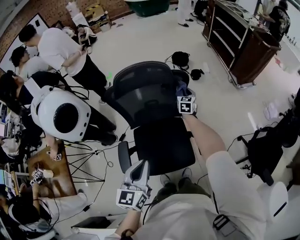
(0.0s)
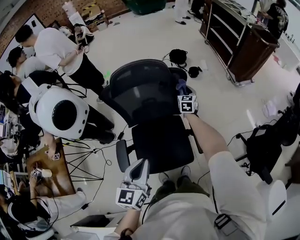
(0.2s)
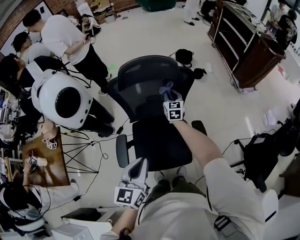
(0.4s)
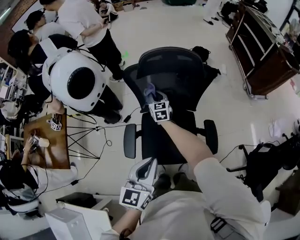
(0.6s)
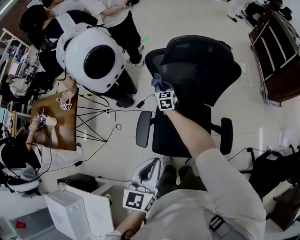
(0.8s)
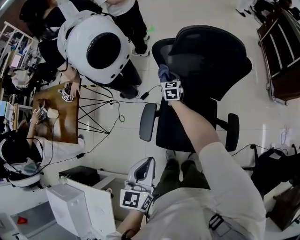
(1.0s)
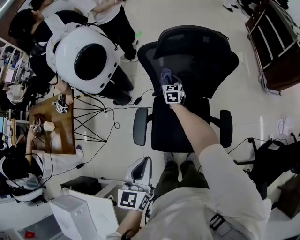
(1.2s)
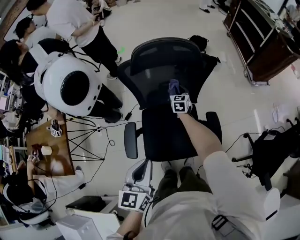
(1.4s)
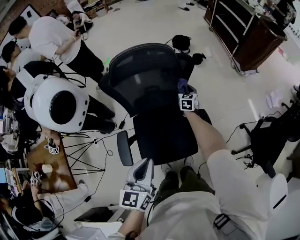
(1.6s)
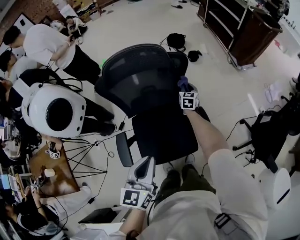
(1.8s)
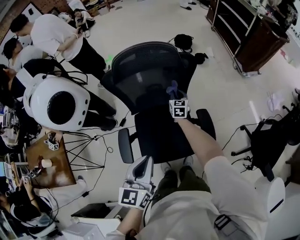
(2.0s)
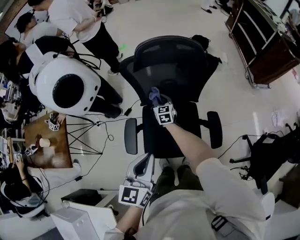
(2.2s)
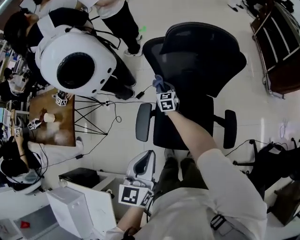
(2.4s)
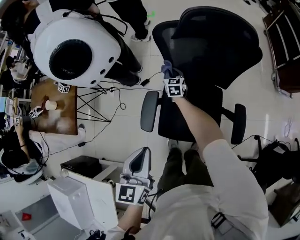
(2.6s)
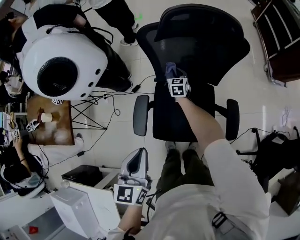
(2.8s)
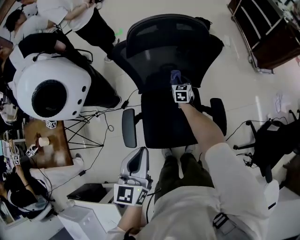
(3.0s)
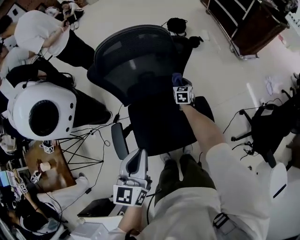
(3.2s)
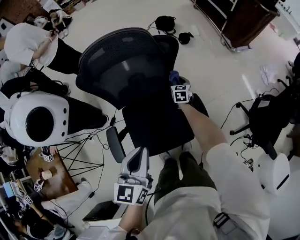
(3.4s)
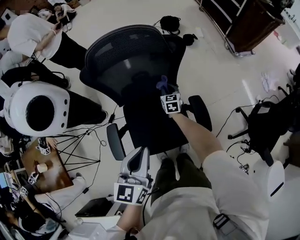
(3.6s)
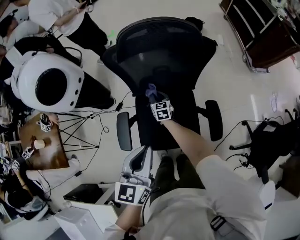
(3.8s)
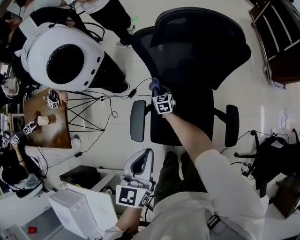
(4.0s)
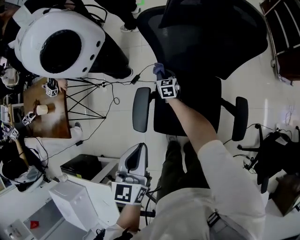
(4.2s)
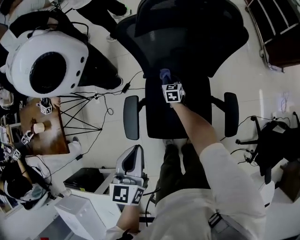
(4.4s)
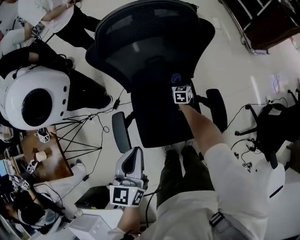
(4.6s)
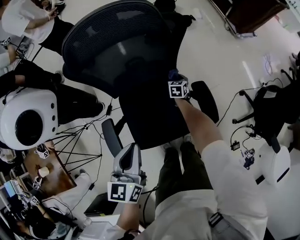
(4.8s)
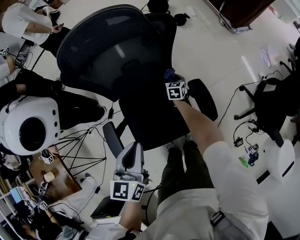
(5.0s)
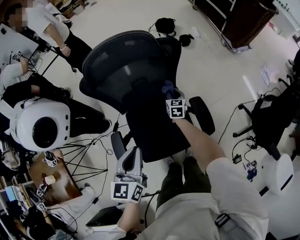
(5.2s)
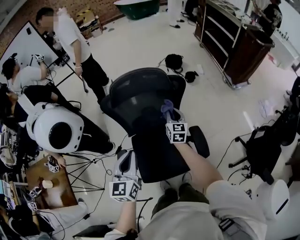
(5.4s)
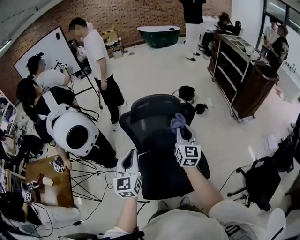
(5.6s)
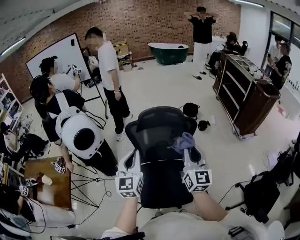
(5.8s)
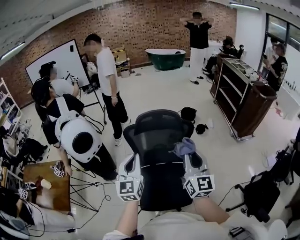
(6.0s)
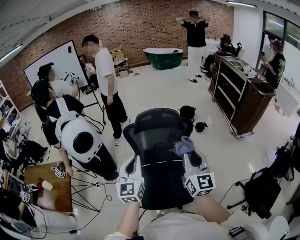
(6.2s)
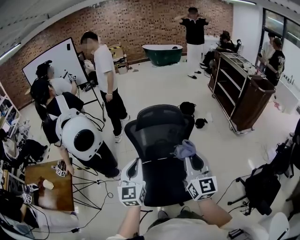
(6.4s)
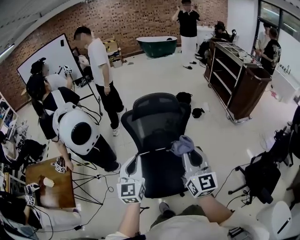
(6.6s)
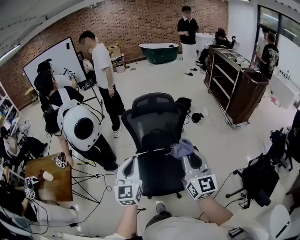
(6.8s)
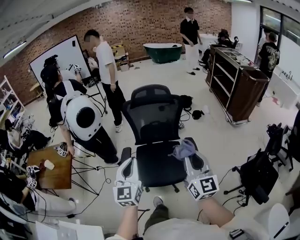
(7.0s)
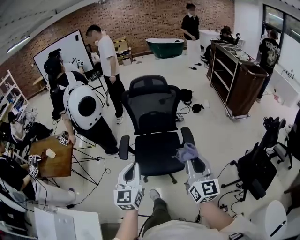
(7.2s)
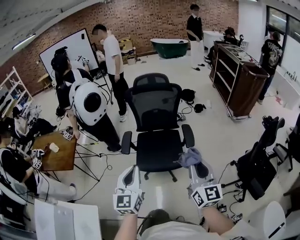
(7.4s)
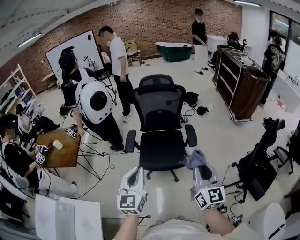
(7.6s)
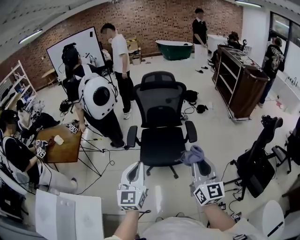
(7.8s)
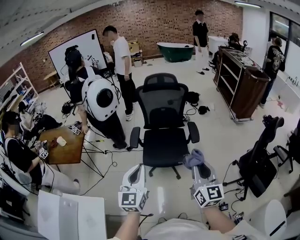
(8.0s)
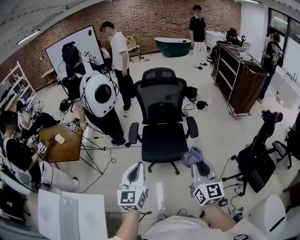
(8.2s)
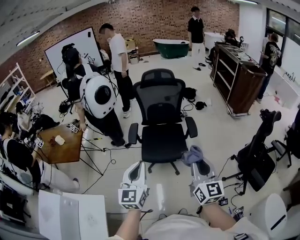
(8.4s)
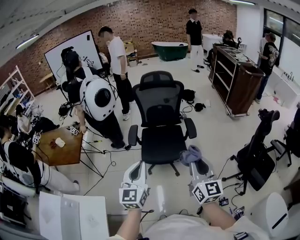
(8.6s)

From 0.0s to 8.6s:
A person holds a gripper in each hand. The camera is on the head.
From 0.0s to 1.4s: The left gripper moves some 5 cm.
From 1.4s to 2.8s: The left gripper ends up some 10 cm from where it was.
From 2.8s to 4.4s: The right gripper is displaced downward by approximately 10 cm.
From 4.4s to 5.8s: The left gripper moves backward, upward and to the right, about 25 cm, and changes its angle by roughly 30 degrees. Meanwhile the right gripper travels upward, backward and to the right by roughly 80 cm, and tips its fingers upward by roughly 60 degrees.
From 5.8s to 7.2s: The two grippers go approximately 40 cm backward.
From 7.2s to 8.6s: The two grippers go approximately 20 cm backward.

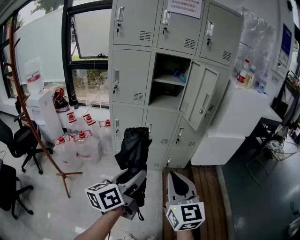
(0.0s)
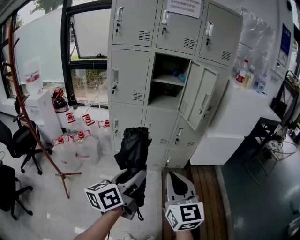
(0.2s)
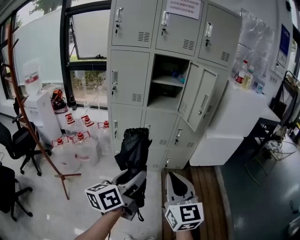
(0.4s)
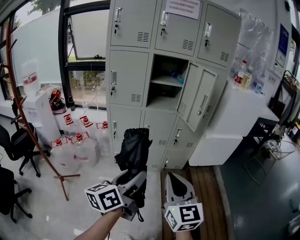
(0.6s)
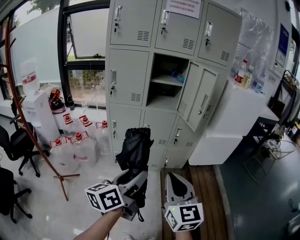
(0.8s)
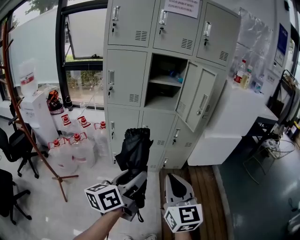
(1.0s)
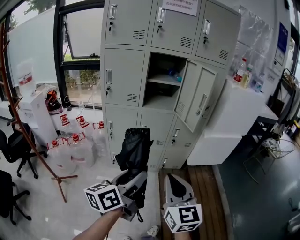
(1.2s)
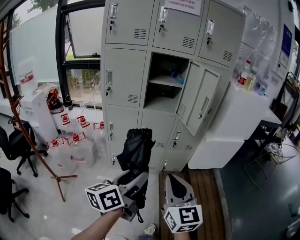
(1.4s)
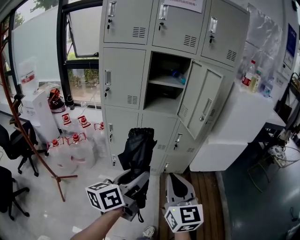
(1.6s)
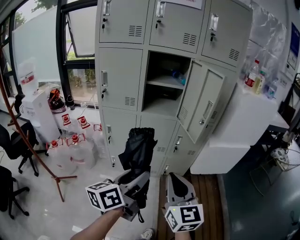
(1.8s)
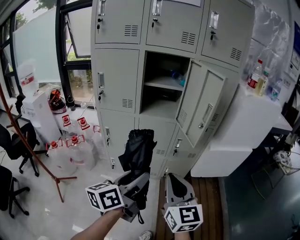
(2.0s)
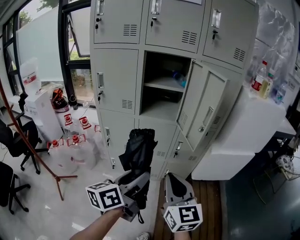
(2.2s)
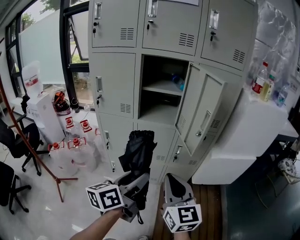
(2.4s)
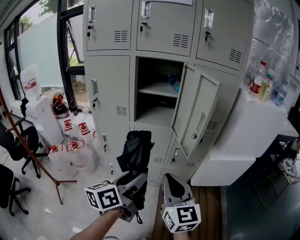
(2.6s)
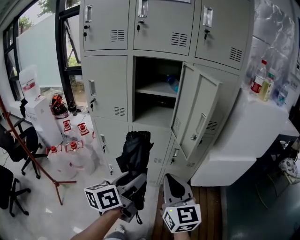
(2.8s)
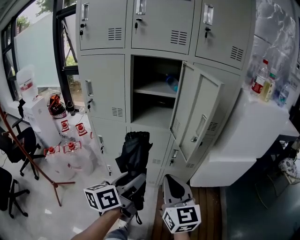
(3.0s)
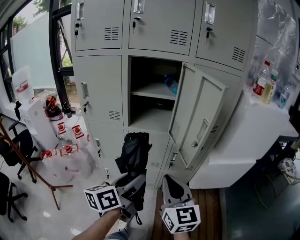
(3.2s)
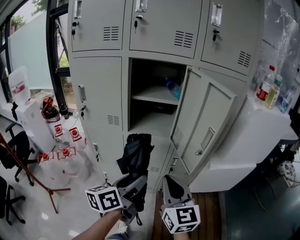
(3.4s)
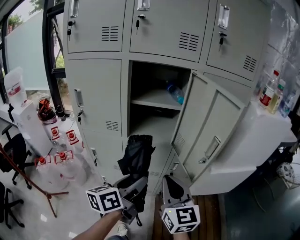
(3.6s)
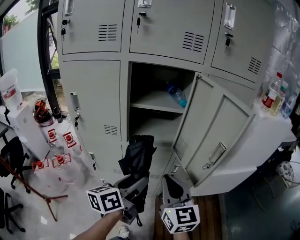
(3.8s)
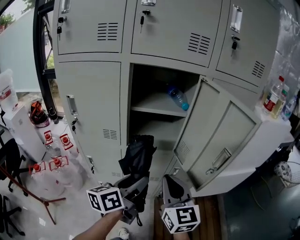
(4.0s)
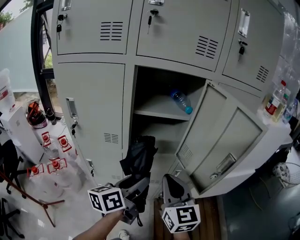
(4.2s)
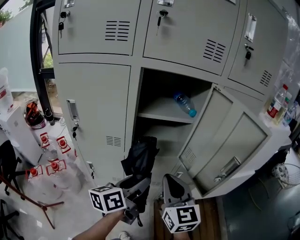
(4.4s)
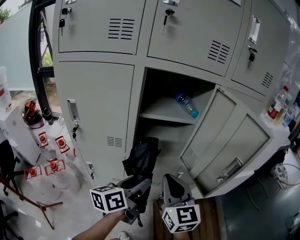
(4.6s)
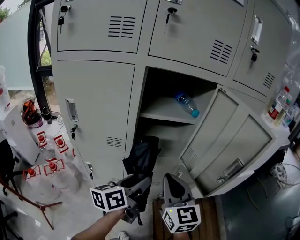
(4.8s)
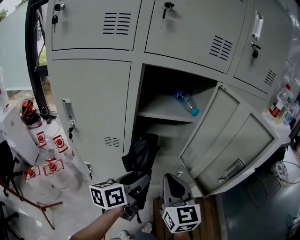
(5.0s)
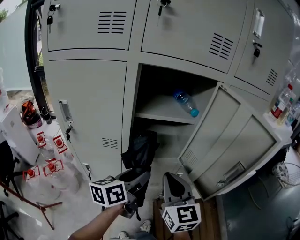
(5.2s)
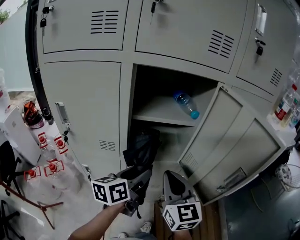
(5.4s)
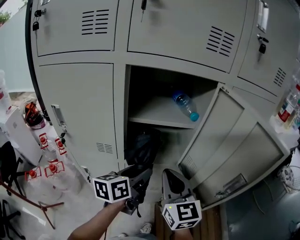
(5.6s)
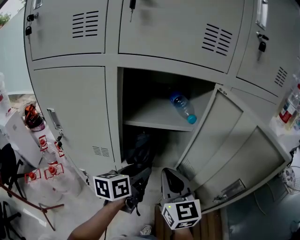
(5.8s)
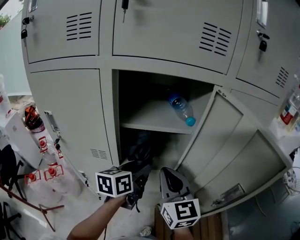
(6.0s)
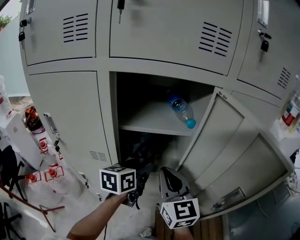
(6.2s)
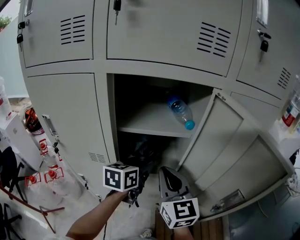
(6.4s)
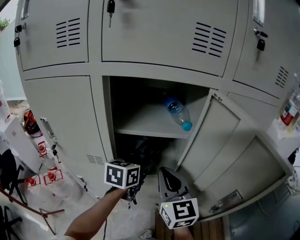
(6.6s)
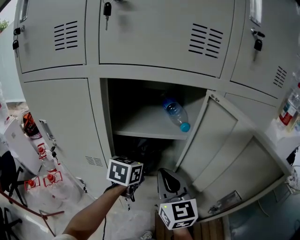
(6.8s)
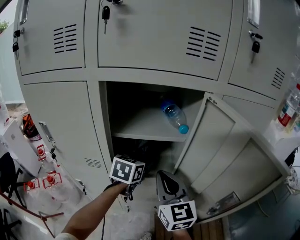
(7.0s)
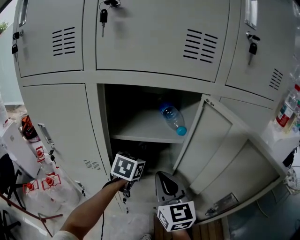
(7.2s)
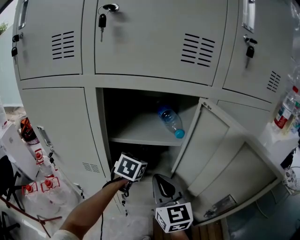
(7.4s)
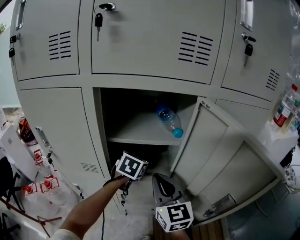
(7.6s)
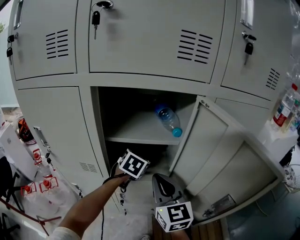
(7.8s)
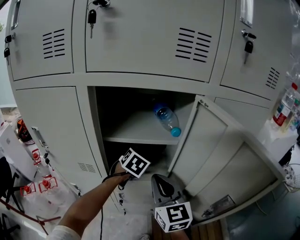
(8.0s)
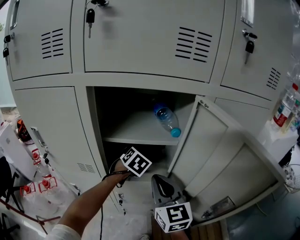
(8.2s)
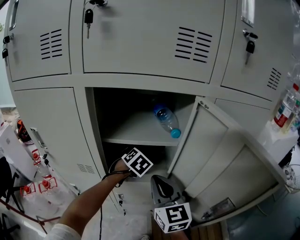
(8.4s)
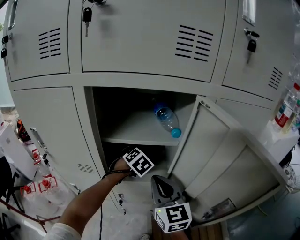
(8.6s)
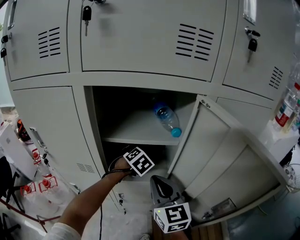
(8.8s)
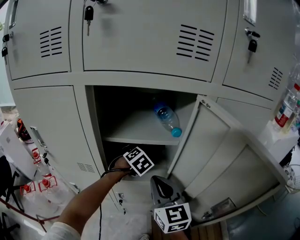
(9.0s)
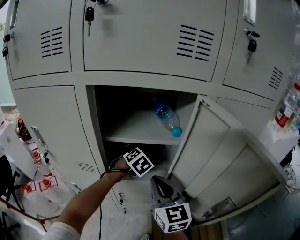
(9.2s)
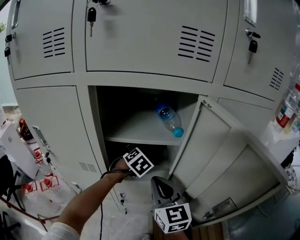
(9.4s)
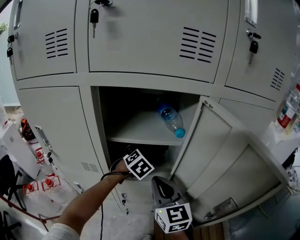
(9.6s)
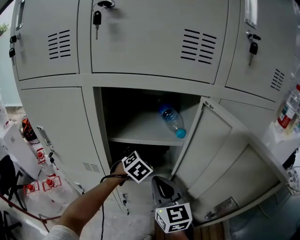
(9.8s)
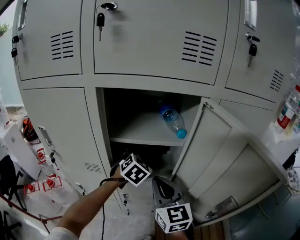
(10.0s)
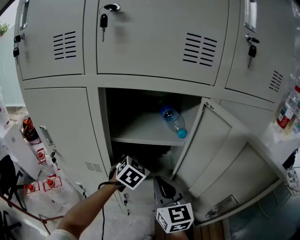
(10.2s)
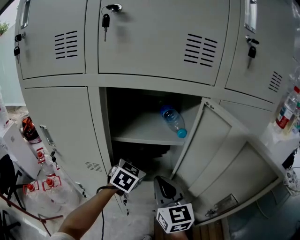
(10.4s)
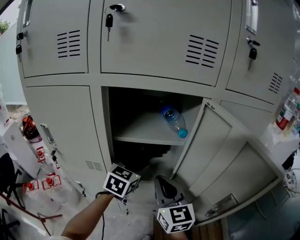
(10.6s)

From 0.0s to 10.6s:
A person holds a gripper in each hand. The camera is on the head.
From 0.0s to 1.6s: The grippers both shift forward by roughly 10 cm.
From 1.6s to 3.0s: Both grippers travel together forward and to the right, about 20 cm.
From 3.0s to 4.6s: Both grippers move forward and to the left, approximately 25 cm.
From 4.6s to 6.0s: The two grippers go approximately 15 cm forward.
From 6.0s to 7.6s: The left gripper heads forward, covering some 10 cm, and swivels some 40 degrees.
From 7.6s to 9.0s: The left gripper is displaced downward by approximately 5 cm, and swivels roughly 30 degrees.
From 9.0s to 10.6s: The left gripper shifts roughly 15 cm upward and backward, and changes its angle by about 40 degrees.

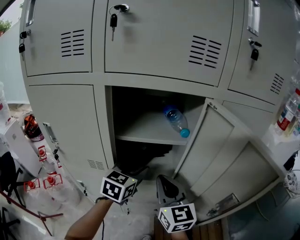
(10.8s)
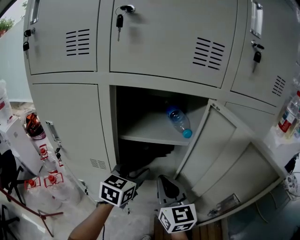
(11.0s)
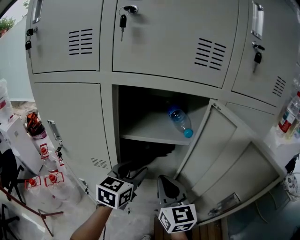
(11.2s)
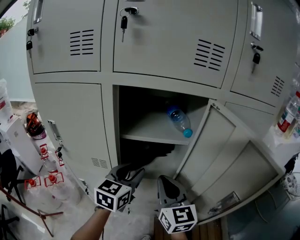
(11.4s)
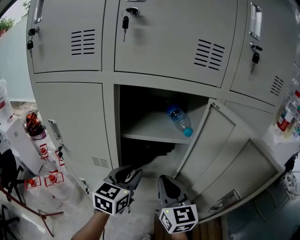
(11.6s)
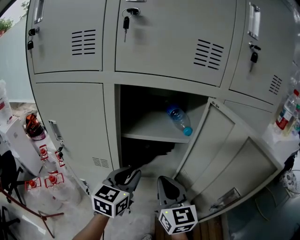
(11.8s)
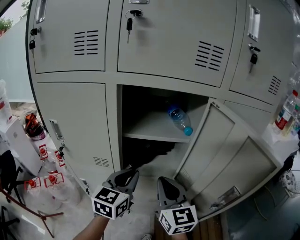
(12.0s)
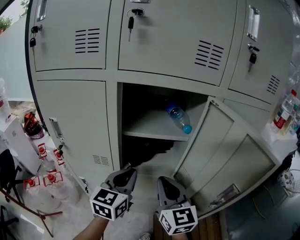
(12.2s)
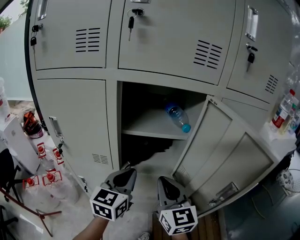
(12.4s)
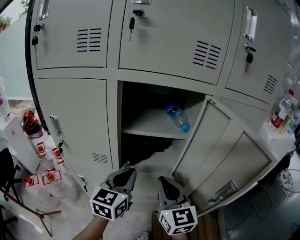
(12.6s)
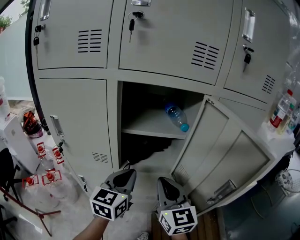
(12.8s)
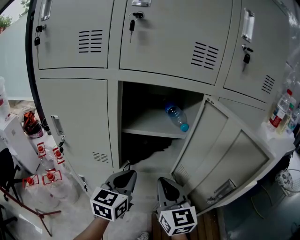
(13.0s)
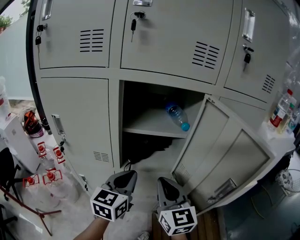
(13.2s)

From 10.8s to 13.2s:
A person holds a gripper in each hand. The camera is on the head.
From 10.8s to 12.0s: The left gripper goes roughly 5 cm backward, and closes its fingers.
From 12.0s to 13.2s: The grippers move only a little.

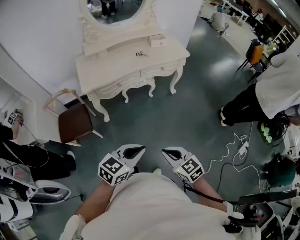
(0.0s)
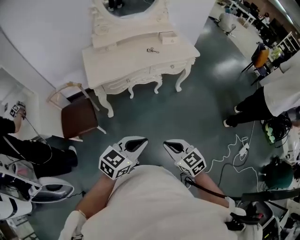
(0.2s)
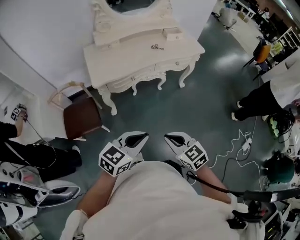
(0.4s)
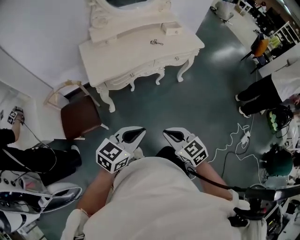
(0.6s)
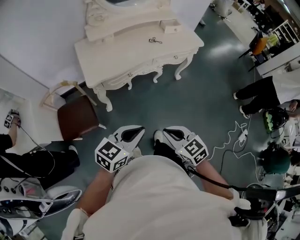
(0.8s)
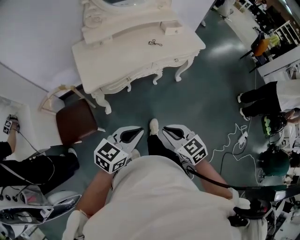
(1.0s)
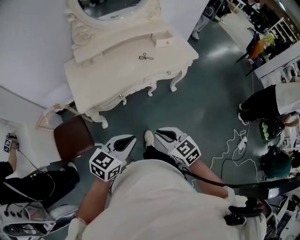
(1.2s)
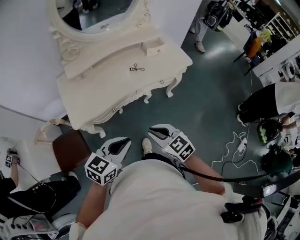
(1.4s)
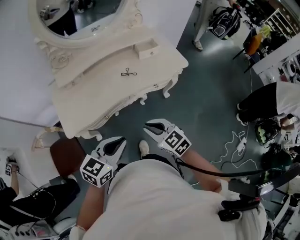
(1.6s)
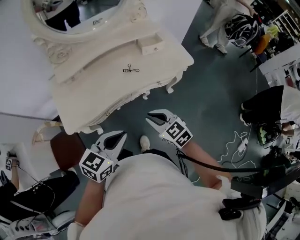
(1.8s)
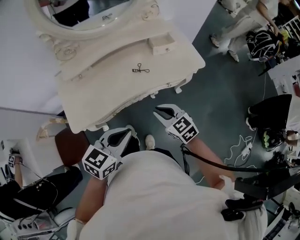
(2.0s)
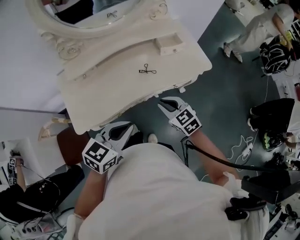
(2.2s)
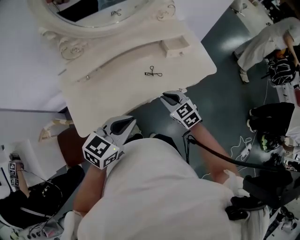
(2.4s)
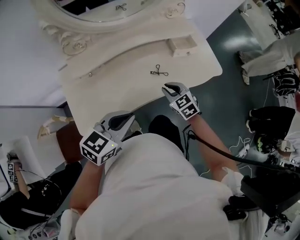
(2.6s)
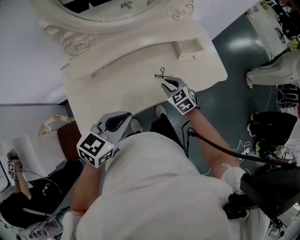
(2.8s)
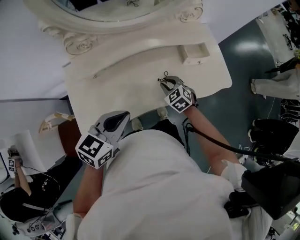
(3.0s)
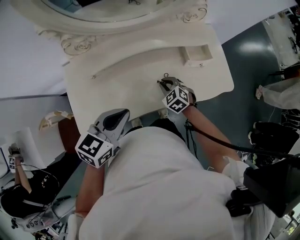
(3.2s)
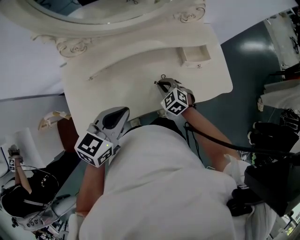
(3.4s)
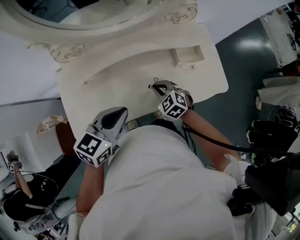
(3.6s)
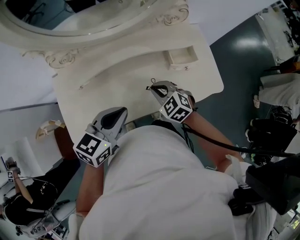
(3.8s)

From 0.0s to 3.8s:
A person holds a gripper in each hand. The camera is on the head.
From 0.0s to 1.2s: Both grippers travel together forward and to the left, roughly 30 cm.
From 1.2s to 2.6s: The grippers both shift forward by approximately 35 cm.
From 2.6s to 3.8s: Both grippers move forward, approximately 15 cm. The right gripper rotates roughly 20 degrees.
